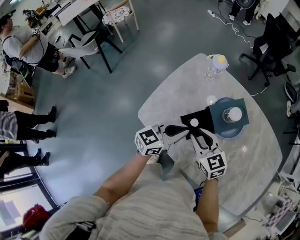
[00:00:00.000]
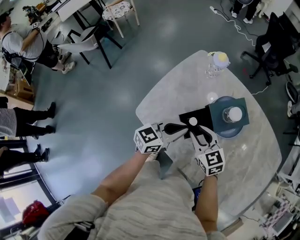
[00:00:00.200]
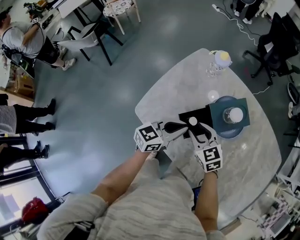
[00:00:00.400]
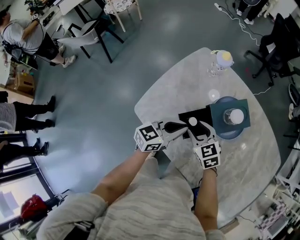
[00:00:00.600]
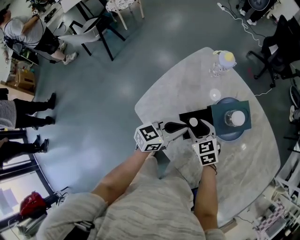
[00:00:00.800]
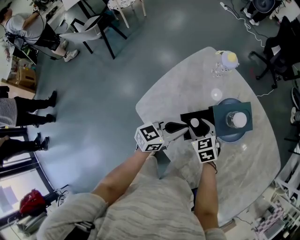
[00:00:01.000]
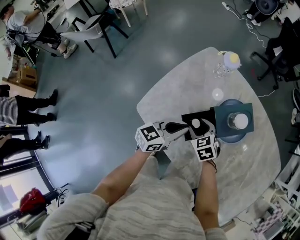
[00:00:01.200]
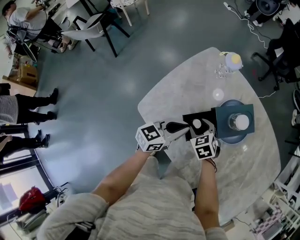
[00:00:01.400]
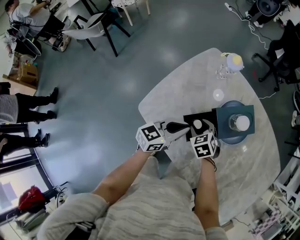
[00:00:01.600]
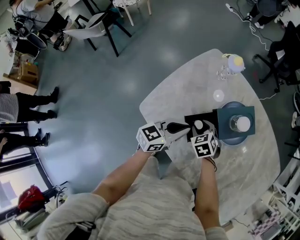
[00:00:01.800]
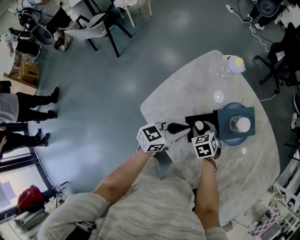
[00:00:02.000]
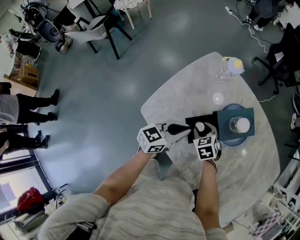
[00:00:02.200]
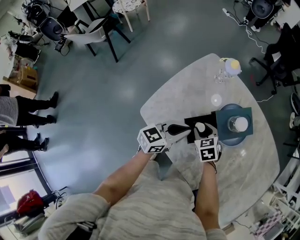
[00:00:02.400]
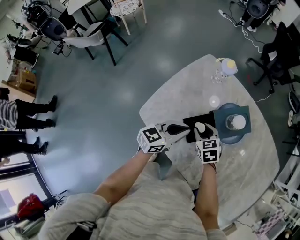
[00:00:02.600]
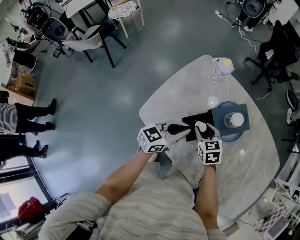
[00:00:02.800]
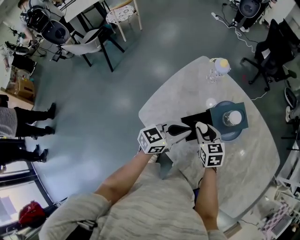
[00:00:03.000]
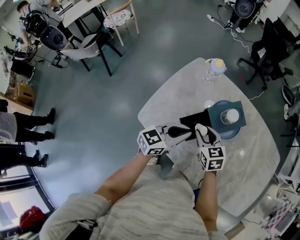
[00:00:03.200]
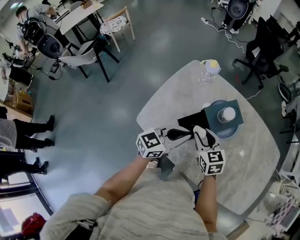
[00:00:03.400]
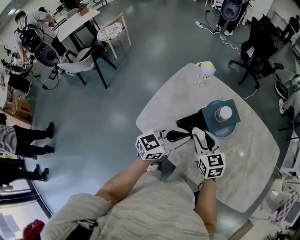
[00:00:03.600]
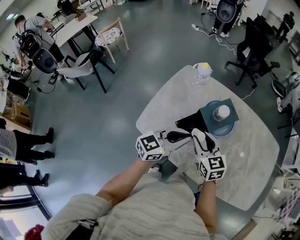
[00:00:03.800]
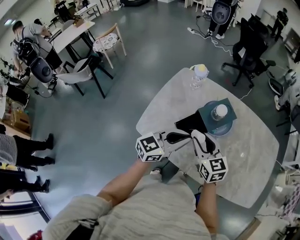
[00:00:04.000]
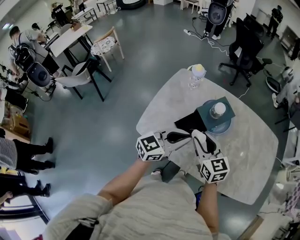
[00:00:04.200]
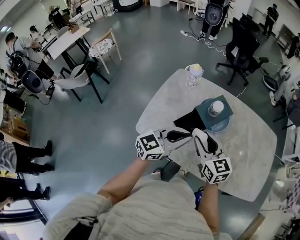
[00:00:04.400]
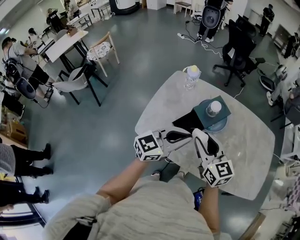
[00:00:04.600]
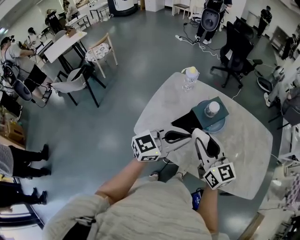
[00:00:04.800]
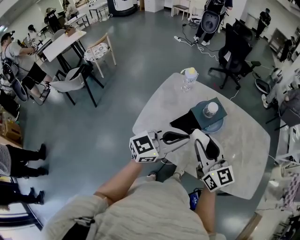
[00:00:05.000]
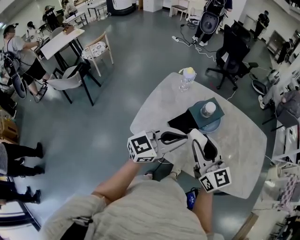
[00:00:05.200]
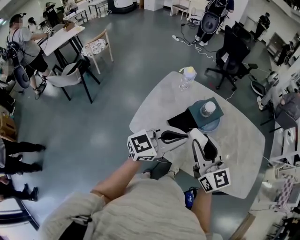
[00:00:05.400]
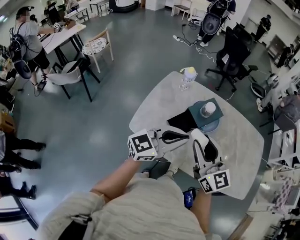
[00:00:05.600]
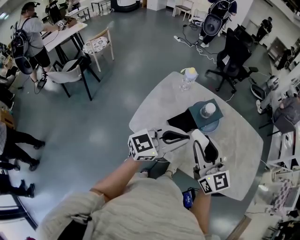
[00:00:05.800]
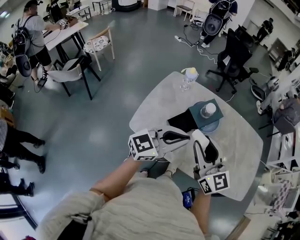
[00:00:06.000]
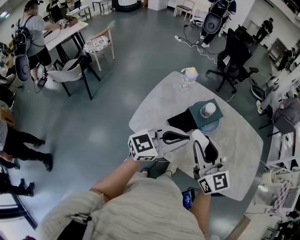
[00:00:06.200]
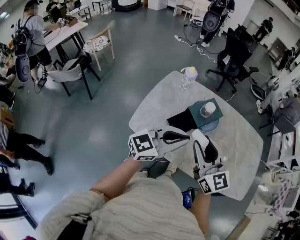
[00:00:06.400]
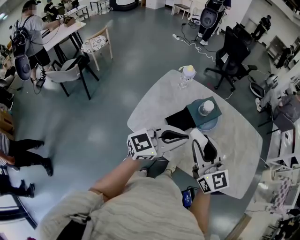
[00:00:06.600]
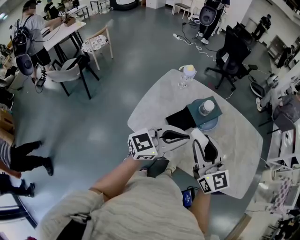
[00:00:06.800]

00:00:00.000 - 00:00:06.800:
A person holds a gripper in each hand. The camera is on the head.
00:00:00.000 - 00:00:01.400: The left gripper heads downward, covering some 5 cm. The right gripper heads downward and forward, covering roughly 15 cm, changes its angle by roughly 30 degrees, and opens up.
00:00:01.400 - 00:00:02.800: The right gripper moves upward, roughly 5 cm.
00:00:02.800 - 00:00:04.000: Both grippers travel together upward and backward, roughly 15 cm. The right gripper rotates some 20 degrees.
00:00:04.000 - 00:00:05.400: Both grippers travel together upward and backward, approximately 15 cm. The right gripper rotates some 20 degrees.
00:00:05.400 - 00:00:06.800: There are only small adjustments of the grippers.

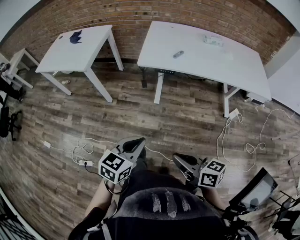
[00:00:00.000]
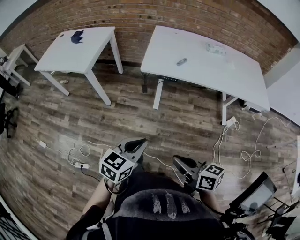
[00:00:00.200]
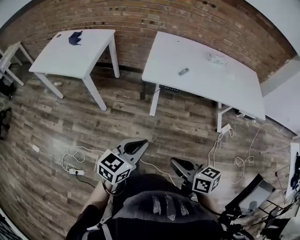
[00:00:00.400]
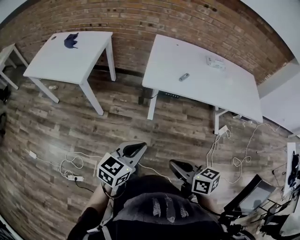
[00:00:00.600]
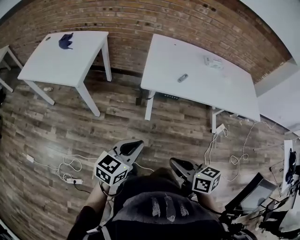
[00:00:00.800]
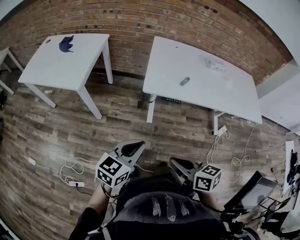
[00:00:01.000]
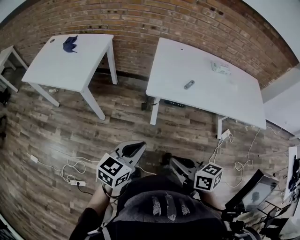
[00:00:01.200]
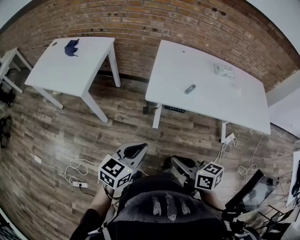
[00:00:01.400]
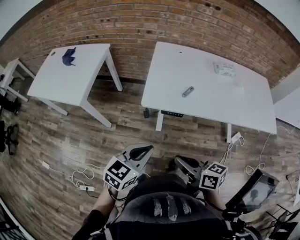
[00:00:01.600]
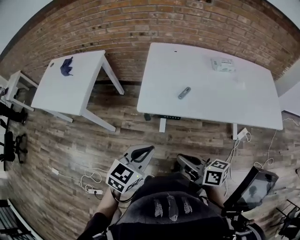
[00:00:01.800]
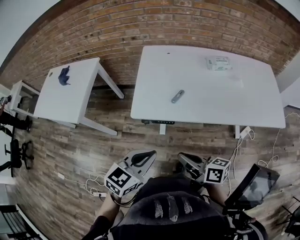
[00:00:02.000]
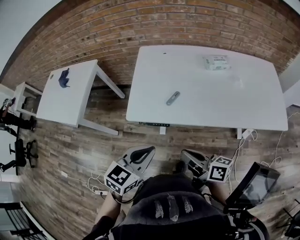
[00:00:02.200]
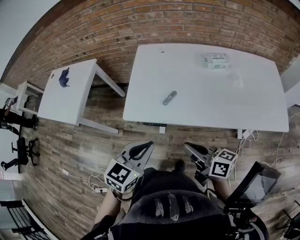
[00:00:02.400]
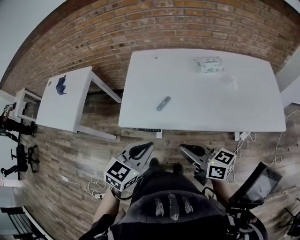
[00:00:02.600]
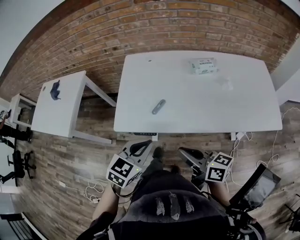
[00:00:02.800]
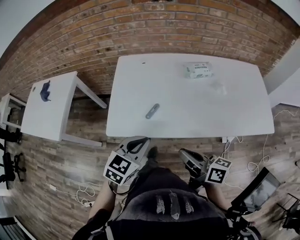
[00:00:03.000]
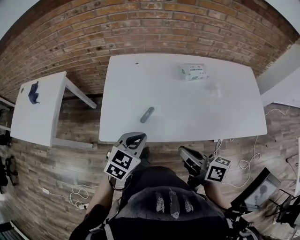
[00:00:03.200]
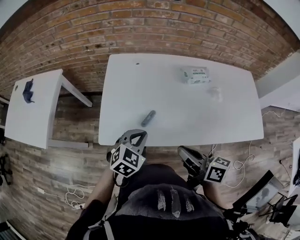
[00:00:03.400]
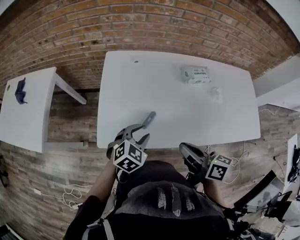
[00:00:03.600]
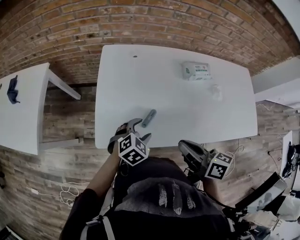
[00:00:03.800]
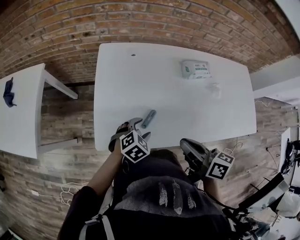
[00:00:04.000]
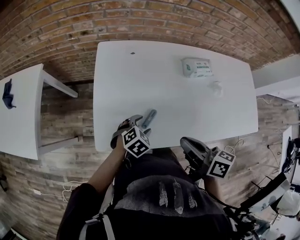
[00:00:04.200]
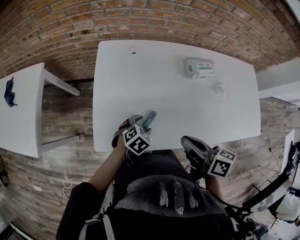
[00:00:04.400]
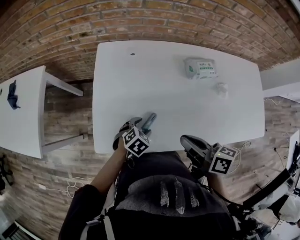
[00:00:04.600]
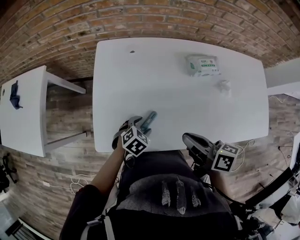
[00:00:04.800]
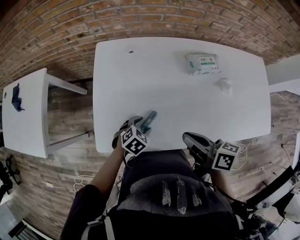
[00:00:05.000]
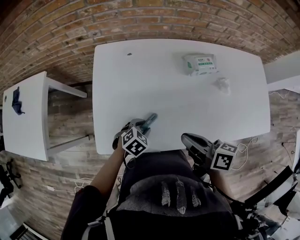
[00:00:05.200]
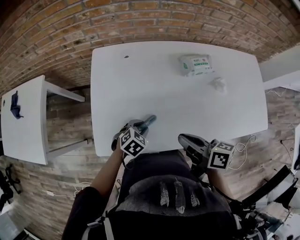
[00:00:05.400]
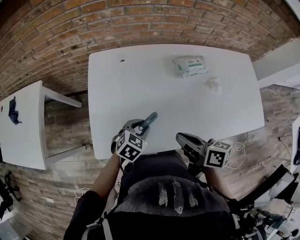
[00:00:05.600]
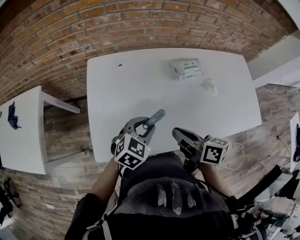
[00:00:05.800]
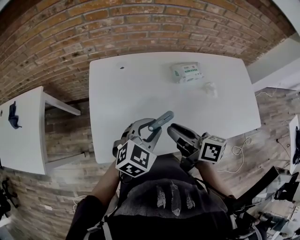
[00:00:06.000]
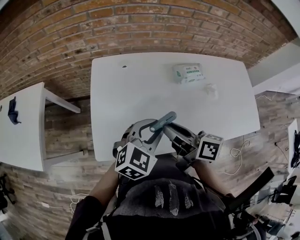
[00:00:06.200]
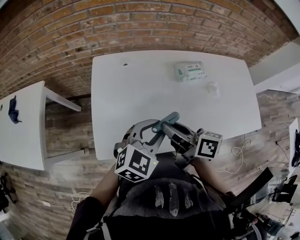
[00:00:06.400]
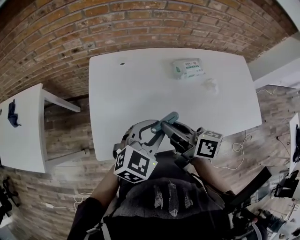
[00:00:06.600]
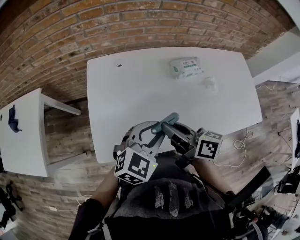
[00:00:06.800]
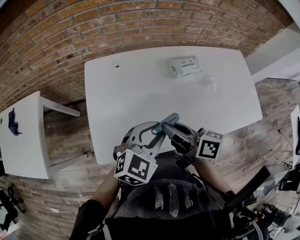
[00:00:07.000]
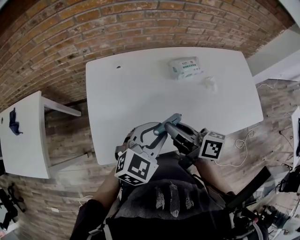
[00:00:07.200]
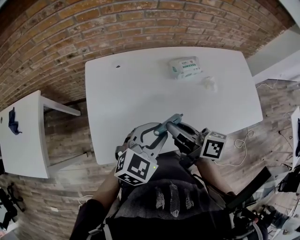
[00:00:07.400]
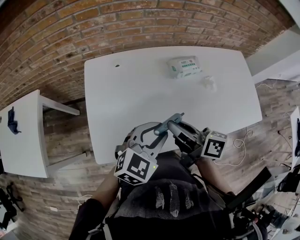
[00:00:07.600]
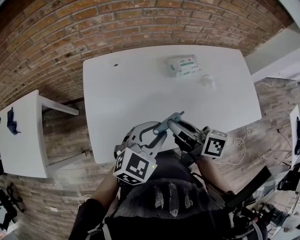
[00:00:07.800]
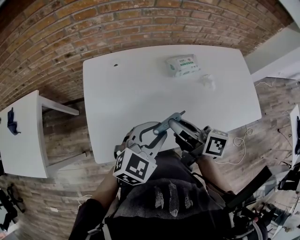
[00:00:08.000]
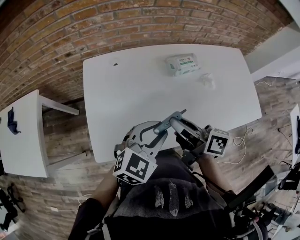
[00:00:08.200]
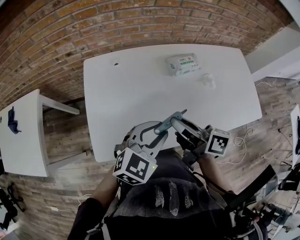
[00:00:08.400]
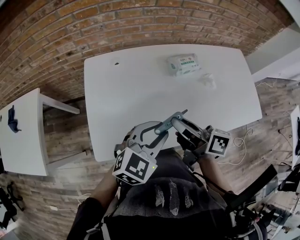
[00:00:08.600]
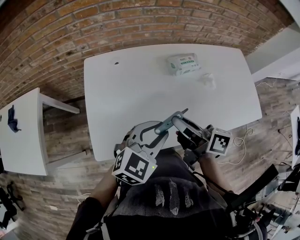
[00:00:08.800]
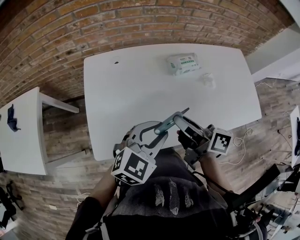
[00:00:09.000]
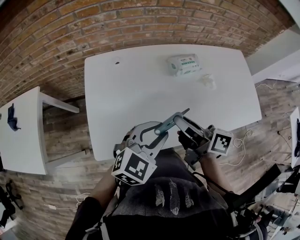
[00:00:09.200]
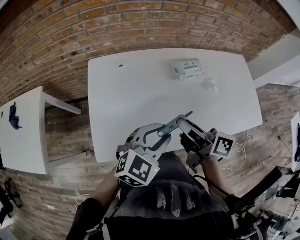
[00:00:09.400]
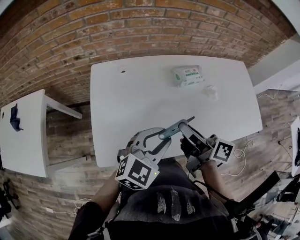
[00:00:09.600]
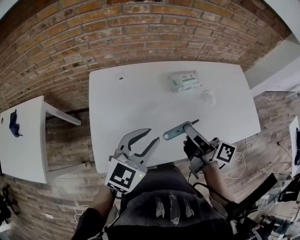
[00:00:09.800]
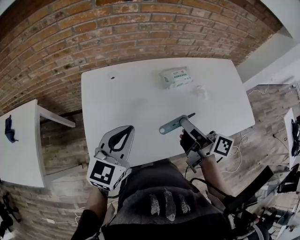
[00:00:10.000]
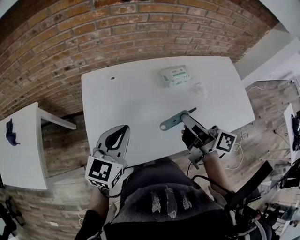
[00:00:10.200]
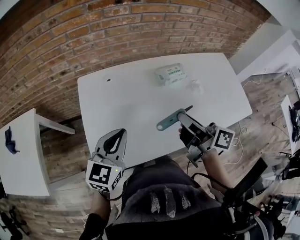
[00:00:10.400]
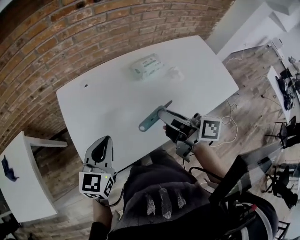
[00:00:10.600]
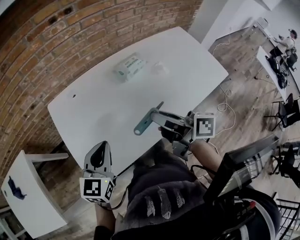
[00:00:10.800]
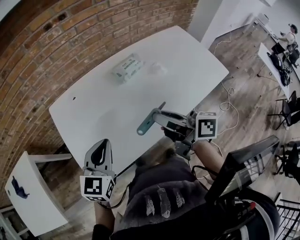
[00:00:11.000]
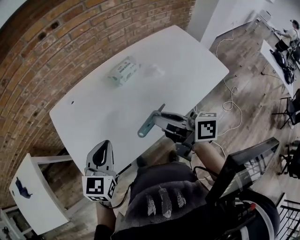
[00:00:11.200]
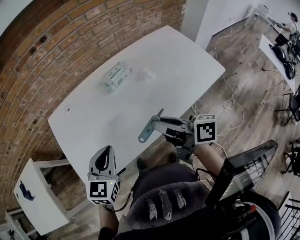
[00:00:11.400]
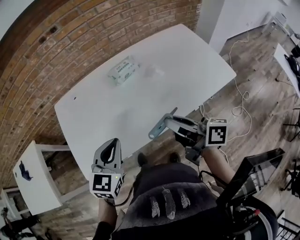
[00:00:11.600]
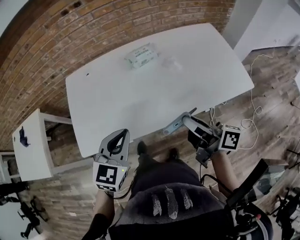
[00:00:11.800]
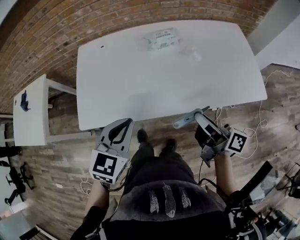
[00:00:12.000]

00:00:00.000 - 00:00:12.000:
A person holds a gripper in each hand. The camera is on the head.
00:00:00.000 - 00:00:01.600: Both grippers move forward, some 25 cm.
00:00:01.600 - 00:00:03.000: Both grippers move to the right and forward, roughly 25 cm.
00:00:03.000 - 00:00:04.400: The left gripper is displaced downward and forward by roughly 25 cm, changes its angle by some 30 degrees, and opens. The right gripper is displaced forward by about 15 cm.
00:00:04.400 - 00:00:06.000: The right gripper opens its fingers. The left gripper shifts approximately 20 cm upward, swivels some 30 degrees, and closes its fingers.
00:00:06.000 - 00:00:09.000: There are only small adjustments of the grippers.
00:00:09.000 - 00:00:10.400: The left gripper travels to the left by some 10 cm, changes its angle by roughly 20 degrees, and closes up; the right gripper moves roughly 5 cm.
00:00:10.400 - 00:00:12.000: Both grippers move to the right and backward, about 25 cm.

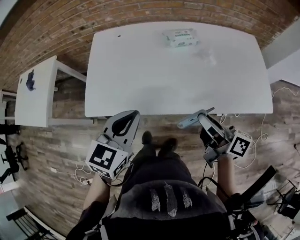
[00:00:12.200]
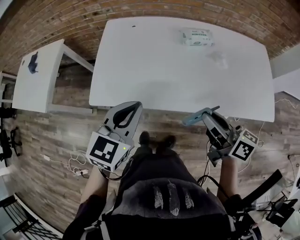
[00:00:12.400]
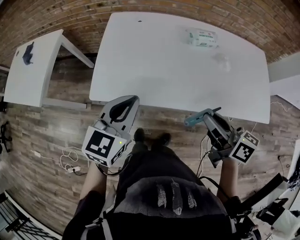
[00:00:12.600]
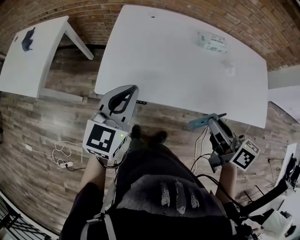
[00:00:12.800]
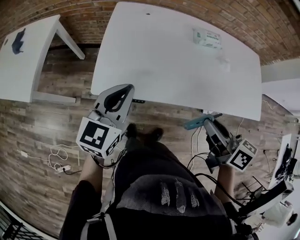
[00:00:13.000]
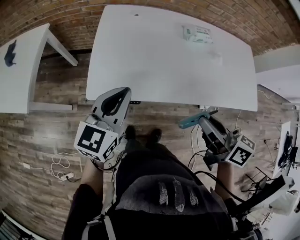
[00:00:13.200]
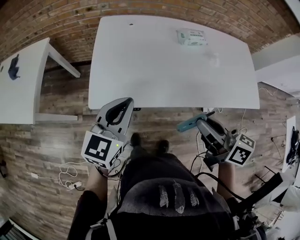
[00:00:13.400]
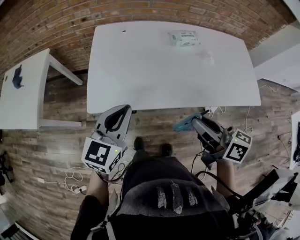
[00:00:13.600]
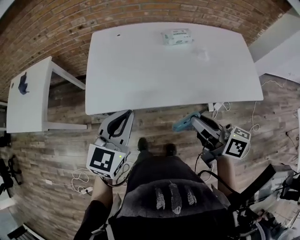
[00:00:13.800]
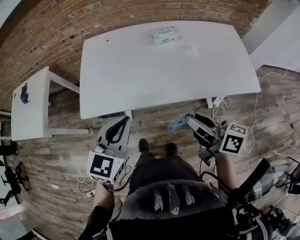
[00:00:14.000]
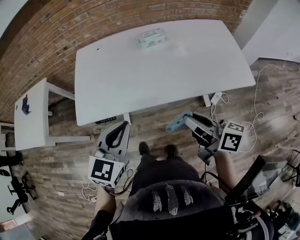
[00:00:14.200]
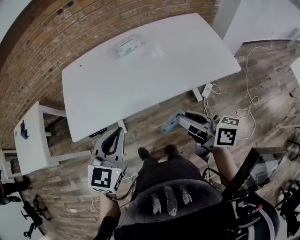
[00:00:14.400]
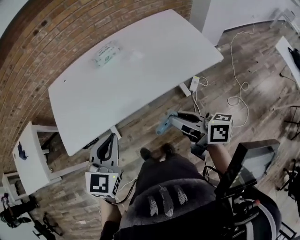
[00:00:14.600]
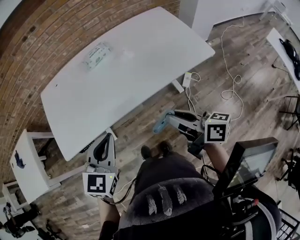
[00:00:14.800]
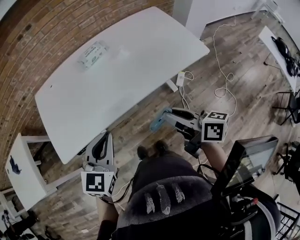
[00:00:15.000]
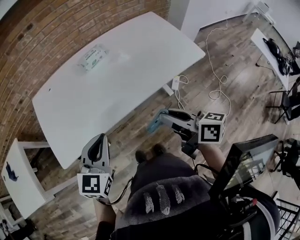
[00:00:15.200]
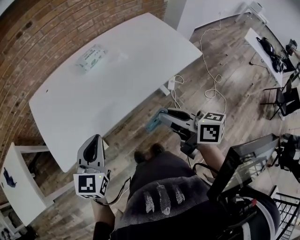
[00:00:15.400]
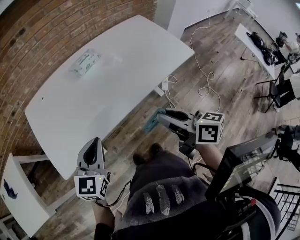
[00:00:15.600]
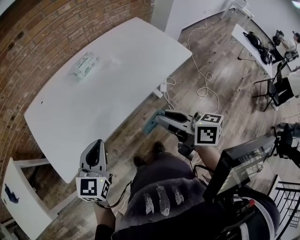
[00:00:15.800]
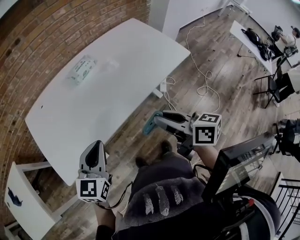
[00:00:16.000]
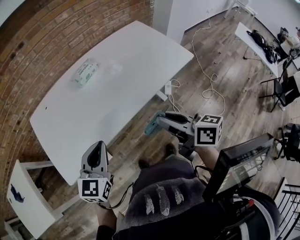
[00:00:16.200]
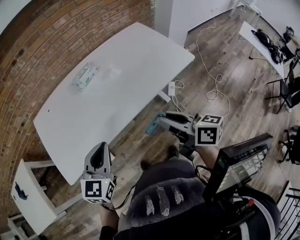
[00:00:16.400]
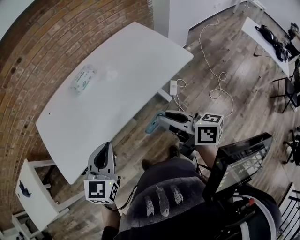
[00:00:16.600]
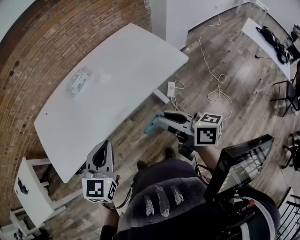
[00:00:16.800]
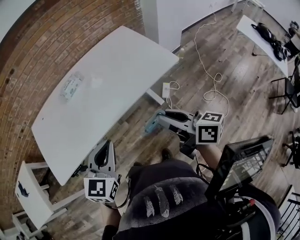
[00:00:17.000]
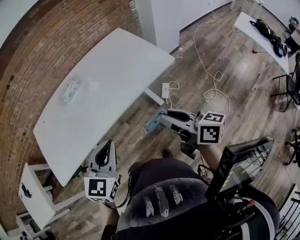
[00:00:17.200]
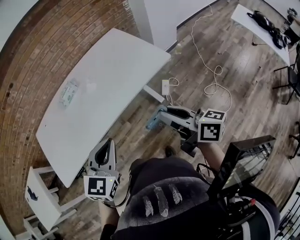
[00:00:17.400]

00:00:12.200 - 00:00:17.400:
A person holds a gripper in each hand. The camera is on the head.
00:00:12.200 - 00:00:14.000: The two grippers go roughly 5 cm backward. The right gripper travels to the left and back again, some 15 cm each way. The left gripper goes to the left and returns, some 20 cm each way.
00:00:14.000 - 00:00:15.600: The left gripper reaches approximately 10 cm to the right, then returns; the right gripper turns by roughly 30 degrees.
00:00:15.600 - 00:00:17.400: Both grippers travel together to the right, some 30 cm.
